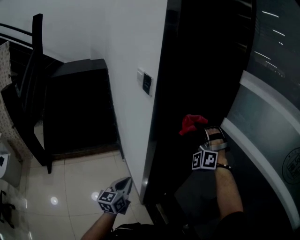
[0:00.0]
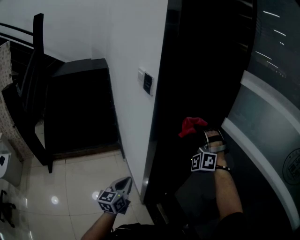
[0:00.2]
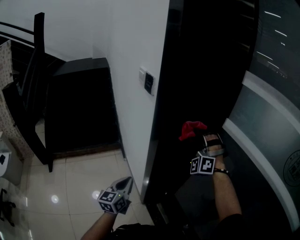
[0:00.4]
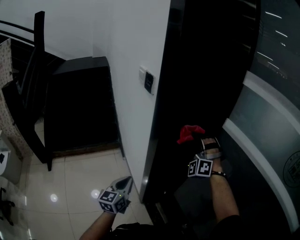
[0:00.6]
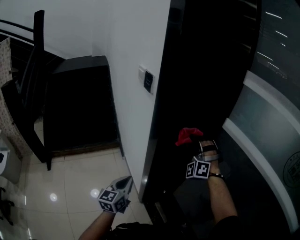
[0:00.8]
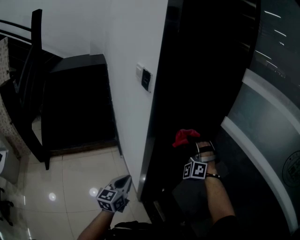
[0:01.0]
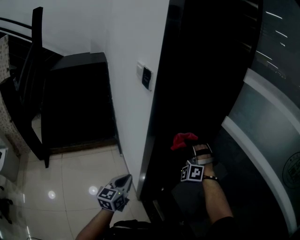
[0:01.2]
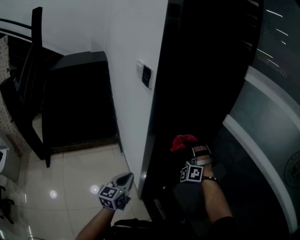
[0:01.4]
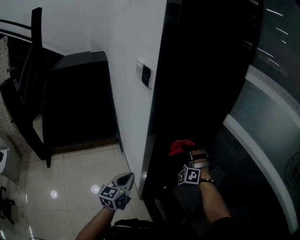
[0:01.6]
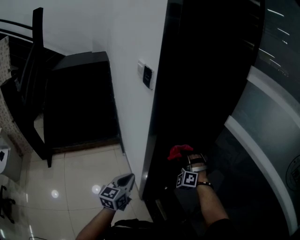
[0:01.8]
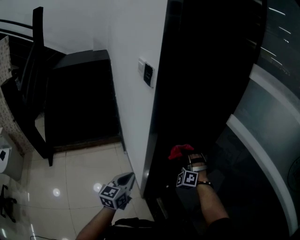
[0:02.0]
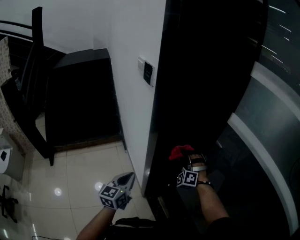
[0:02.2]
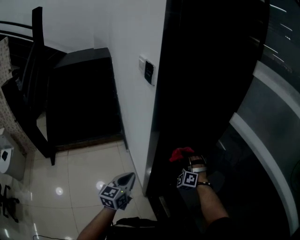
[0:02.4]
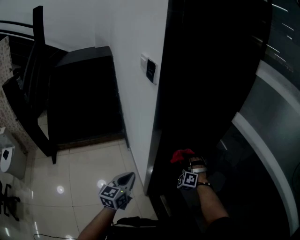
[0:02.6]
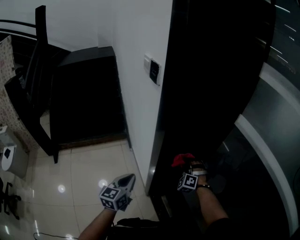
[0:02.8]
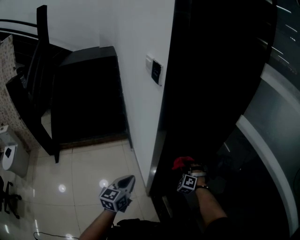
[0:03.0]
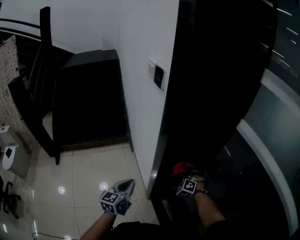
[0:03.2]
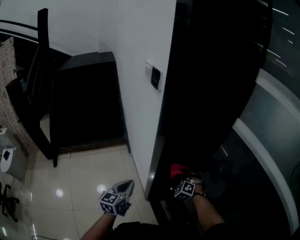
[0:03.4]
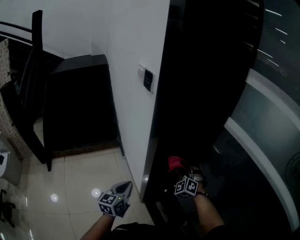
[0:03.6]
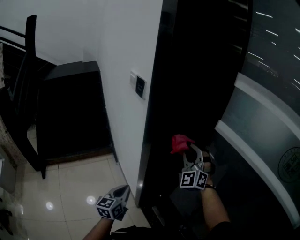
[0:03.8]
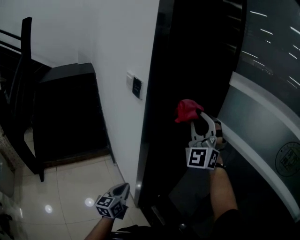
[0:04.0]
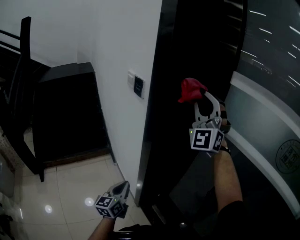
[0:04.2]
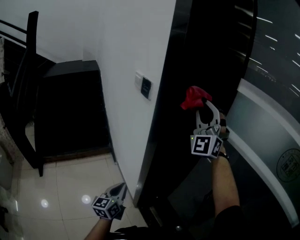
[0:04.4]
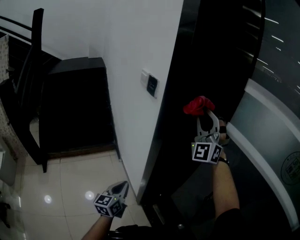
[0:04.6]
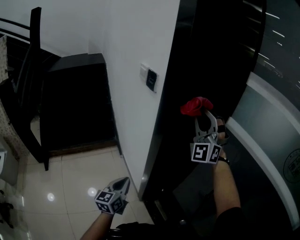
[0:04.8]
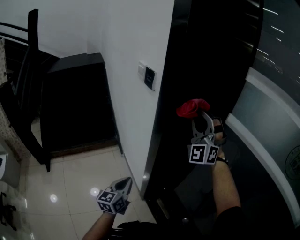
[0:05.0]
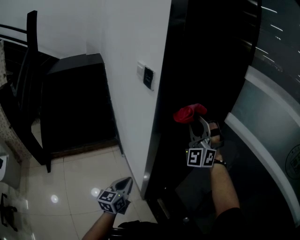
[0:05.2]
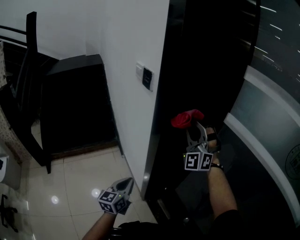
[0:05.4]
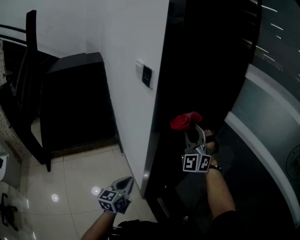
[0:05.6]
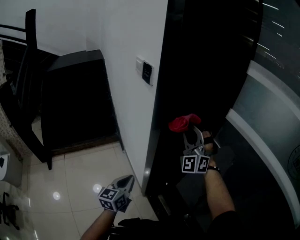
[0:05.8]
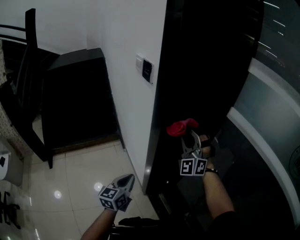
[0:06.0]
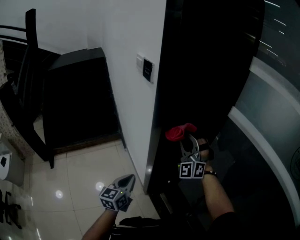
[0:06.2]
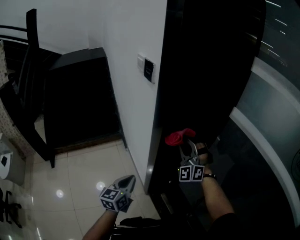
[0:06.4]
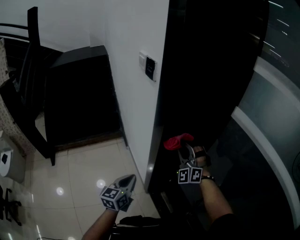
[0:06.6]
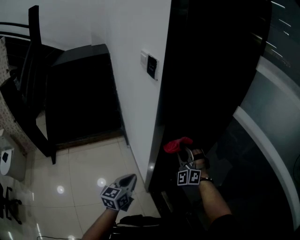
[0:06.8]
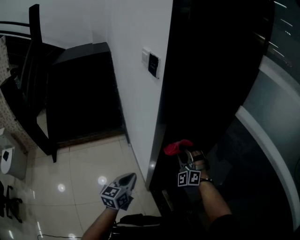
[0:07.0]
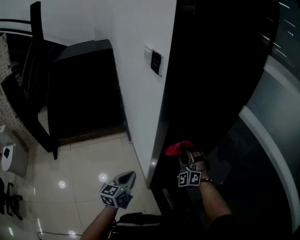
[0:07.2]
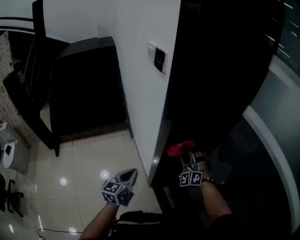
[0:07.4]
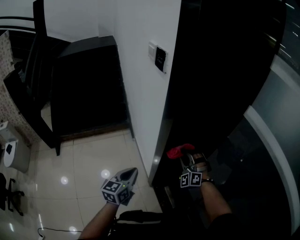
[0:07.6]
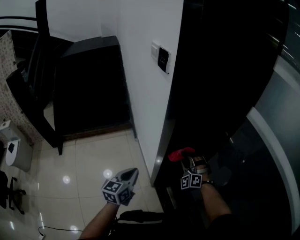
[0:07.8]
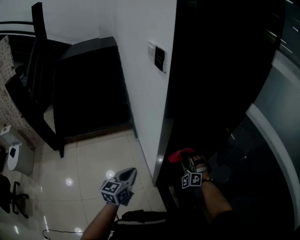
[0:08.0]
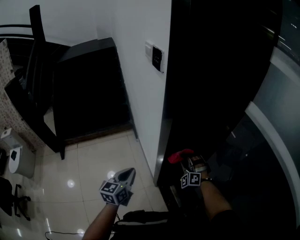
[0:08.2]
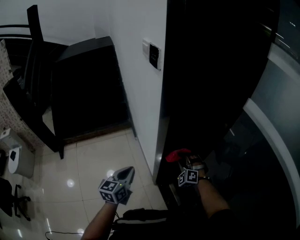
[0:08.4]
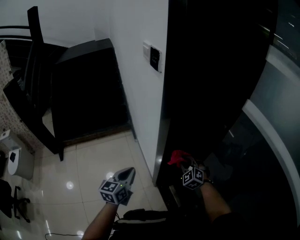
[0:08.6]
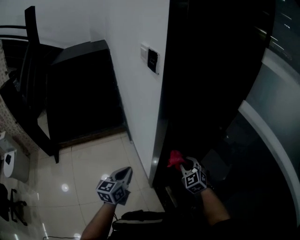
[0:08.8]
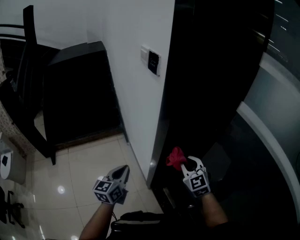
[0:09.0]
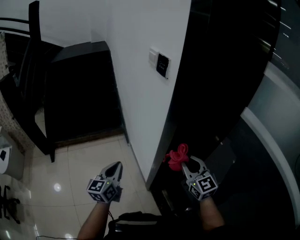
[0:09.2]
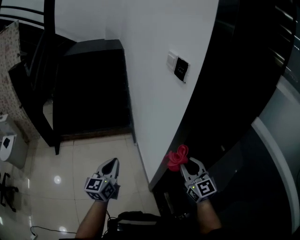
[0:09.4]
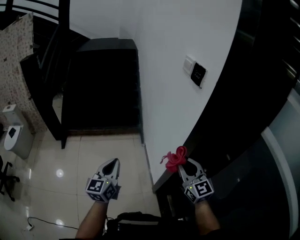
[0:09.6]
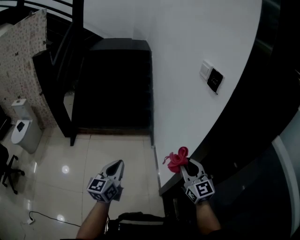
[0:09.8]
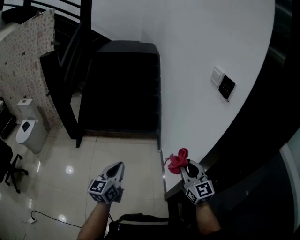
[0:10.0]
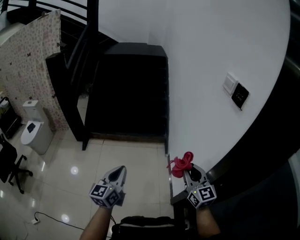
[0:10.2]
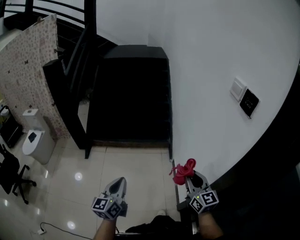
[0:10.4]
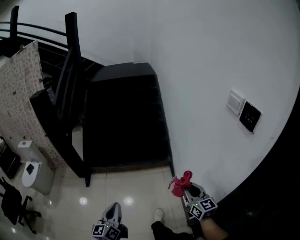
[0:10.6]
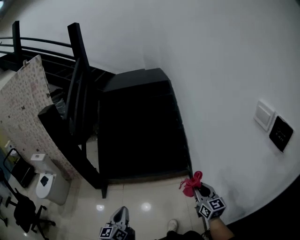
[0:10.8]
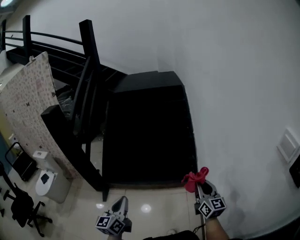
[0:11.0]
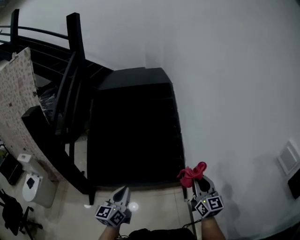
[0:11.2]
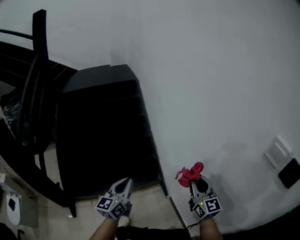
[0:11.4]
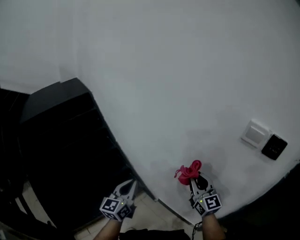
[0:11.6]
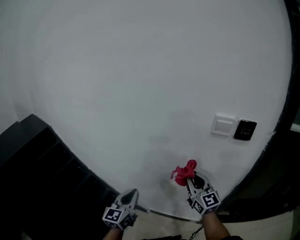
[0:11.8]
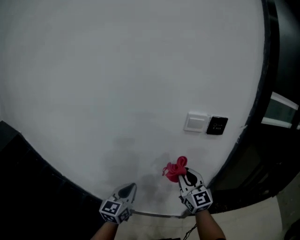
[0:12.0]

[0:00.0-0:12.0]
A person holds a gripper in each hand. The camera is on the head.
0:00.0 to 0:01.6: The right gripper heads downward, covering some 20 cm.
0:01.6 to 0:03.0: The right gripper is displaced downward by roughly 15 cm, and swivels about 20 degrees.
0:03.0 to 0:04.4: The right gripper travels upward by about 50 cm, and points its fingers roughly 60 degrees further upward.
0:04.4 to 0:06.0: The right gripper goes some 20 cm downward.
0:06.0 to 0:07.6: The right gripper travels downward by roughly 20 cm, and changes its angle by some 20 degrees.
0:07.6 to 0:09.0: The right gripper goes some 10 cm backward and upward, and rolls clockwise, seen from behind, by roughly 50 degrees; the left gripper ends up about 5 cm from where it was.
0:09.0 to 0:10.4: The left gripper travels to the left by about 30 cm, and turns by some 30 degrees. The right gripper goes about 30 cm to the left and forward, and swivels about 40 degrees.
0:10.4 to 0:12.0: The right gripper ends up approximately 30 cm from where it was, and swivels some 80 degrees. The left gripper ends up approximately 60 cm from where it was, and swivels about 90 degrees.

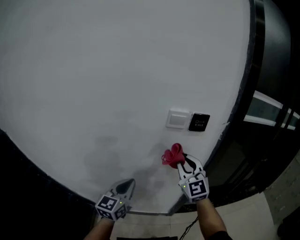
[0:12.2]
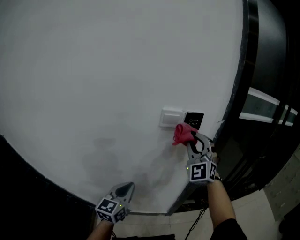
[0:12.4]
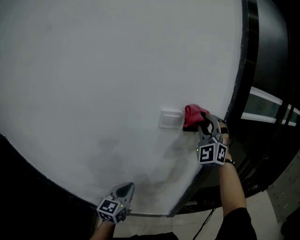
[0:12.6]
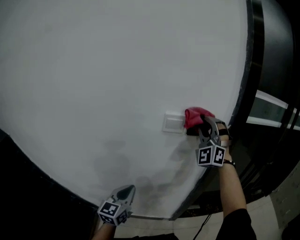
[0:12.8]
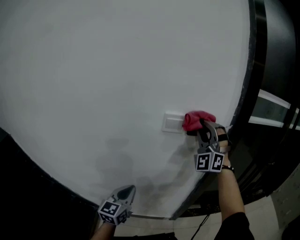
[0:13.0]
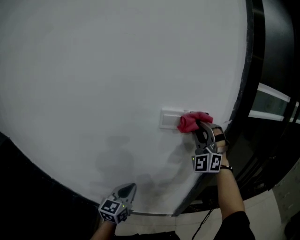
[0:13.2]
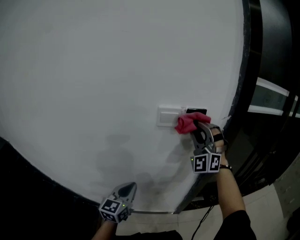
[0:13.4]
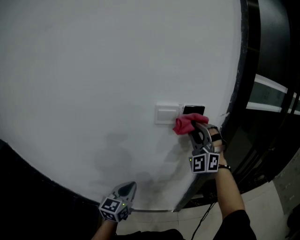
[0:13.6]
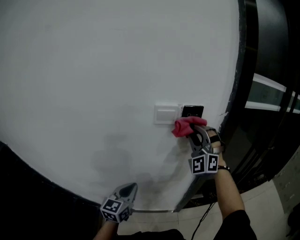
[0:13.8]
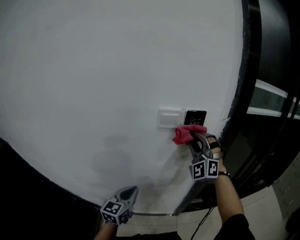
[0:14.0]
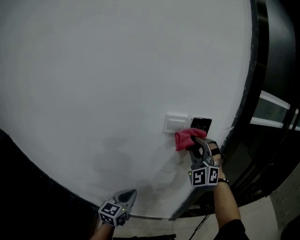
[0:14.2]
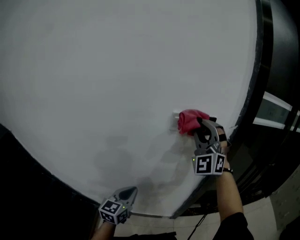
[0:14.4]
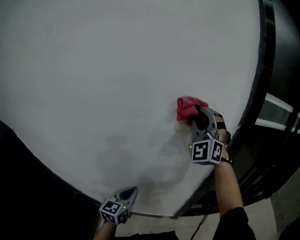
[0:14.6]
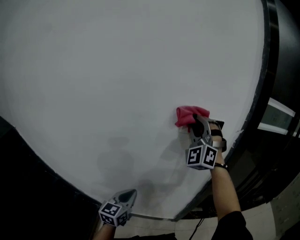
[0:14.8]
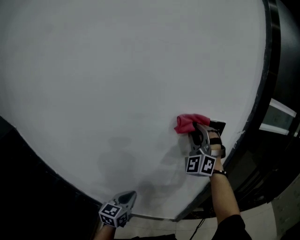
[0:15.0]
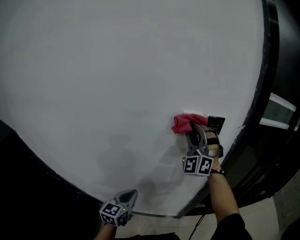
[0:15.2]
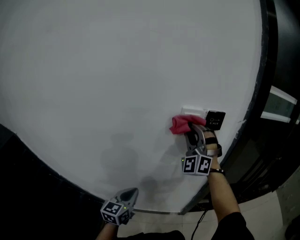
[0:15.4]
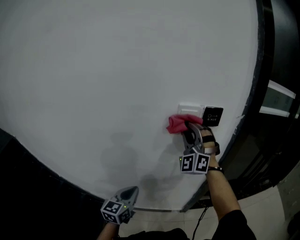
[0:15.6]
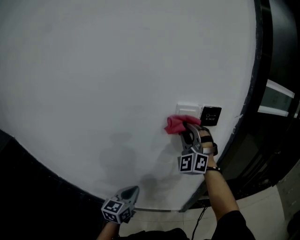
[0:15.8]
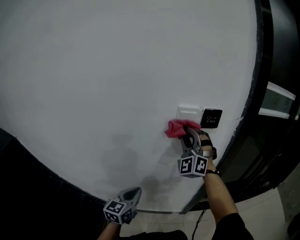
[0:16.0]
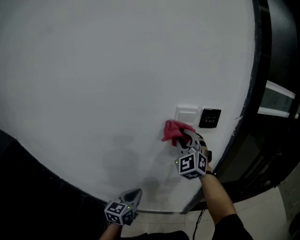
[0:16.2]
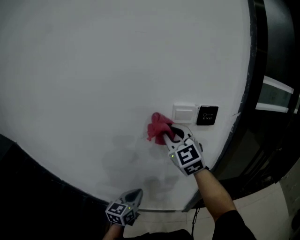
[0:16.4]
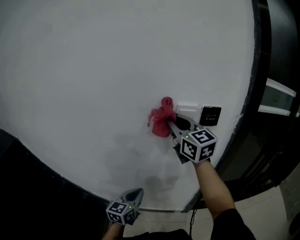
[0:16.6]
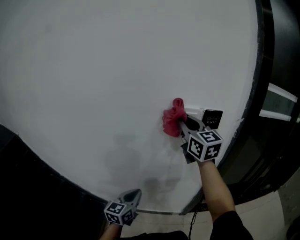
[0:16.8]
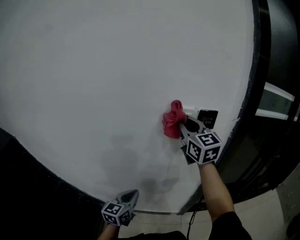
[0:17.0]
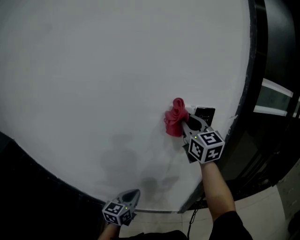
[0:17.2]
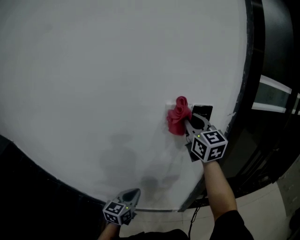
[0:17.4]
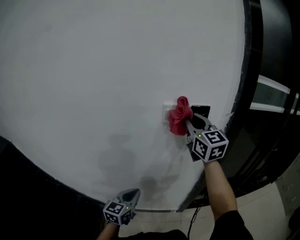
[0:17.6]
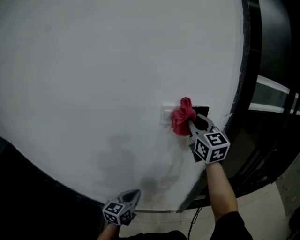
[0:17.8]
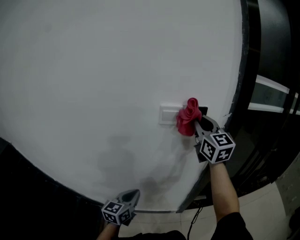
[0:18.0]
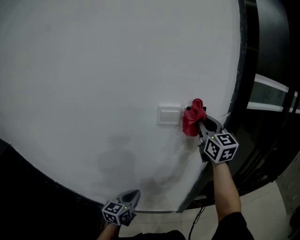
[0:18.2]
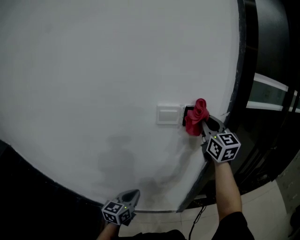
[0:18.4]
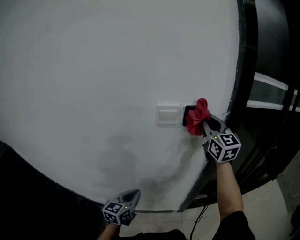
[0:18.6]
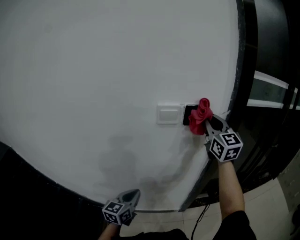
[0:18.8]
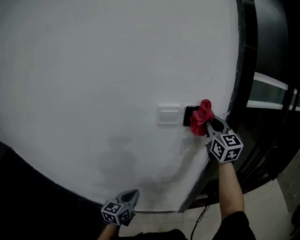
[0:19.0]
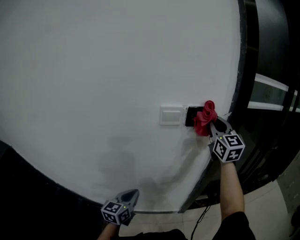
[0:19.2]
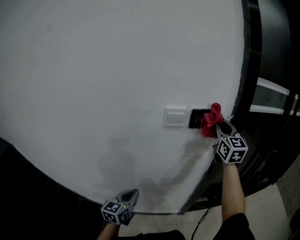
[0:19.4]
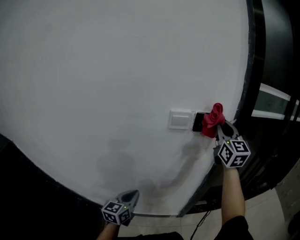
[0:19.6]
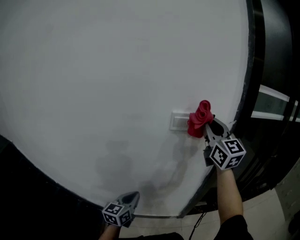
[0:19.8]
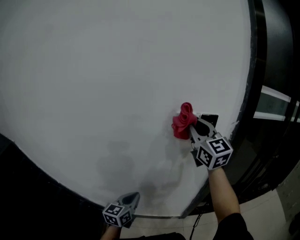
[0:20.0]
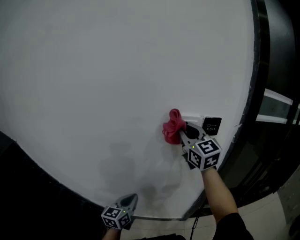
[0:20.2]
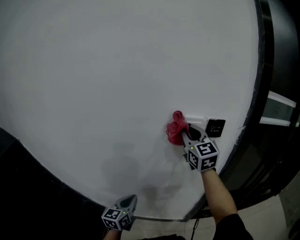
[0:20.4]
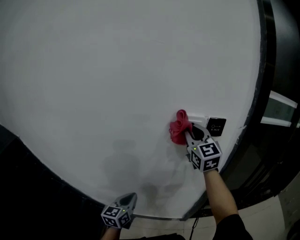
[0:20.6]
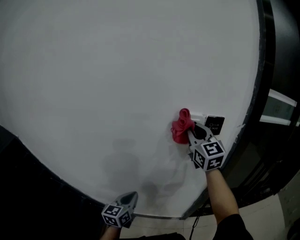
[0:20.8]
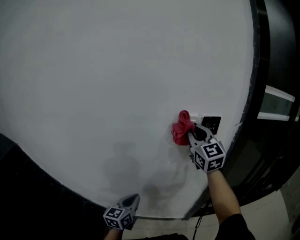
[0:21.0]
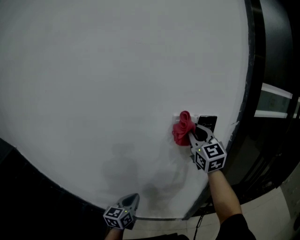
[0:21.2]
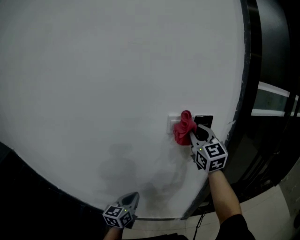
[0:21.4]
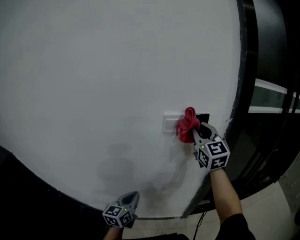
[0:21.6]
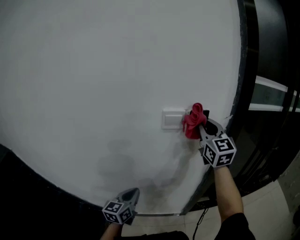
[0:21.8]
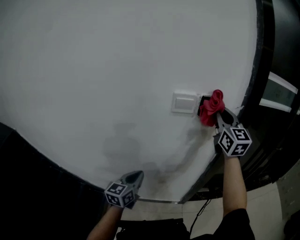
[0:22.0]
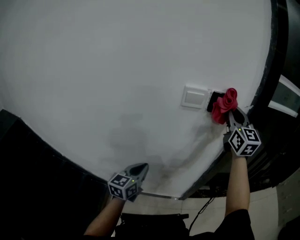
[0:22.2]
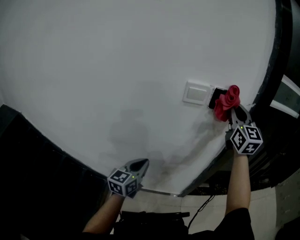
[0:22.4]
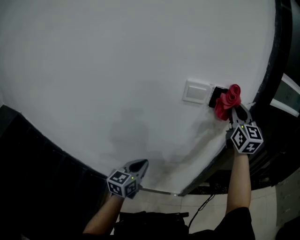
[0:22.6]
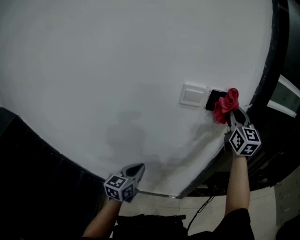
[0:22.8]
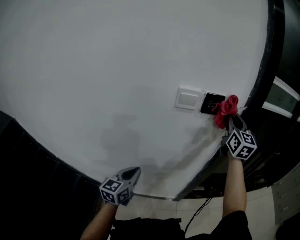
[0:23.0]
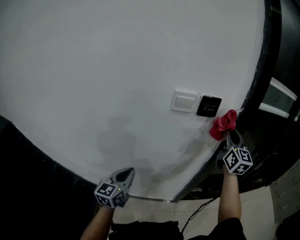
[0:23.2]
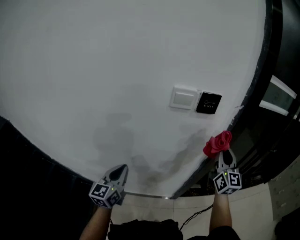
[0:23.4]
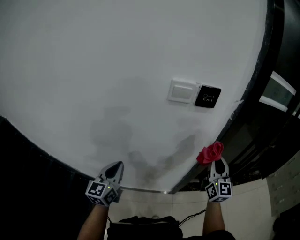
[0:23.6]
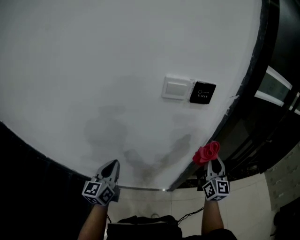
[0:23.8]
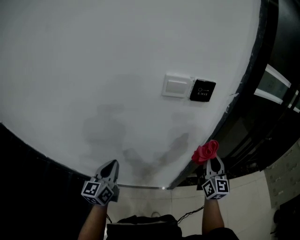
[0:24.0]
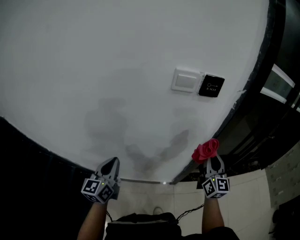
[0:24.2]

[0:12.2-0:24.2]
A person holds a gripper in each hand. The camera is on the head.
0:12.2 to 0:13.8: The right gripper travels forward, to the right and upward by about 15 cm, and twists some 50 degrees counterclockwise, seen from behind; the left gripper moves approximately 5 cm.
0:13.8 to 0:15.2: The right gripper travels to the left by about 10 cm, and reaches about 10 cm upward, then returns. The left gripper moves to the left, approximately 5 cm.
0:15.2 to 0:16.6: The right gripper changes place by about 5 cm, and rotates around the line of its fingers by some 70 degrees, clockwise from behind.
0:16.6 to 0:18.2: The right gripper heads to the right, covering some 20 cm.
0:18.2 to 0:19.8: The right gripper shifts by approximately 5 cm.
0:19.8 to 0:21.2: The right gripper heads to the left, covering about 10 cm.
0:21.2 to 0:22.6: The left gripper shifts approximately 10 cm to the right, while the right gripper travels to the right by about 15 cm.
0:22.6 to 0:24.2: The left gripper is displaced to the left by roughly 10 cm. Meanwhile the right gripper heads downward and backward, covering some 25 cm.
